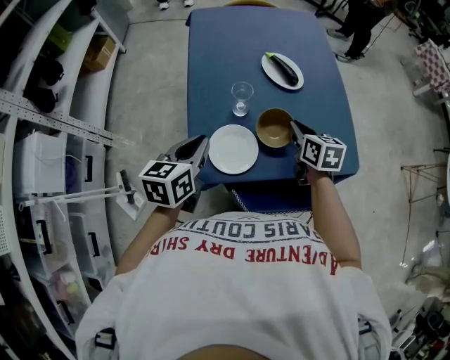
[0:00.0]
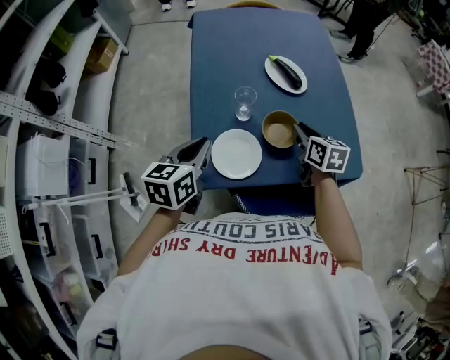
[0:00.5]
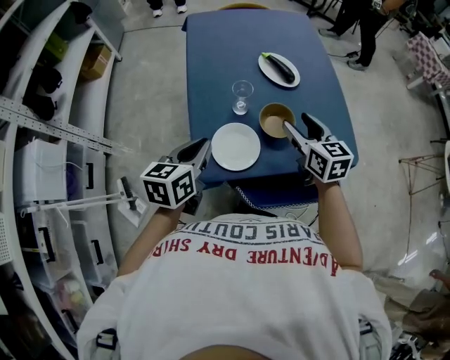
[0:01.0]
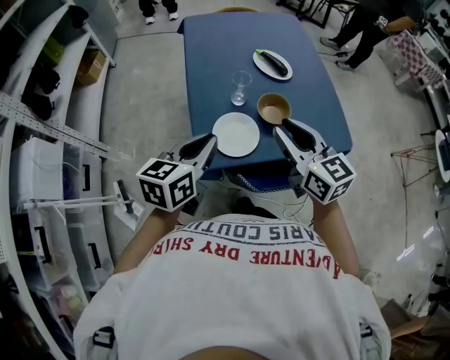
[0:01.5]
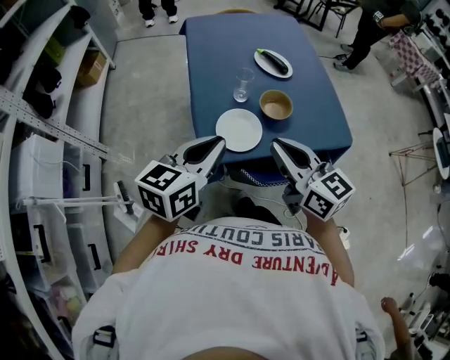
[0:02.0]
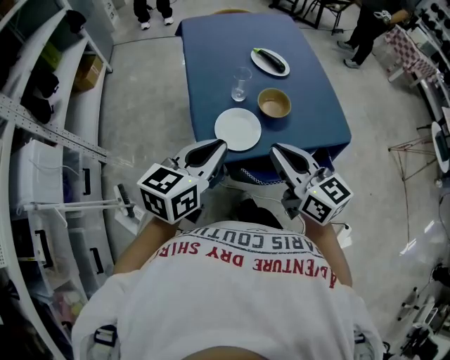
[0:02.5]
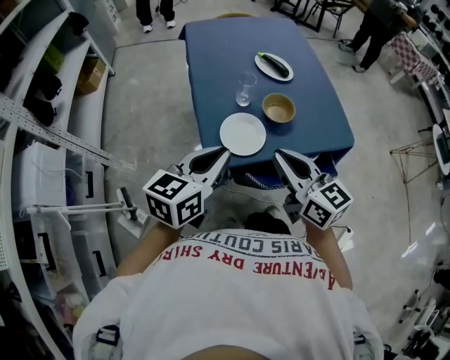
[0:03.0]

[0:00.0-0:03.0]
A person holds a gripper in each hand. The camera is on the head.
0:00.0 to 0:01.5: The left gripper is displaced backward and upward by roughly 10 cm. Meanwhile the right gripper moves upward, backward and to the left, some 20 cm, rotates approximately 30 degrees, and opens and closes again.
0:01.5 to 0:03.0: The left gripper changes place by approximately 5 cm. The right gripper travels backward by roughly 10 cm.

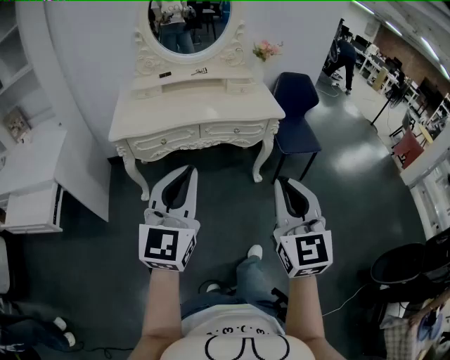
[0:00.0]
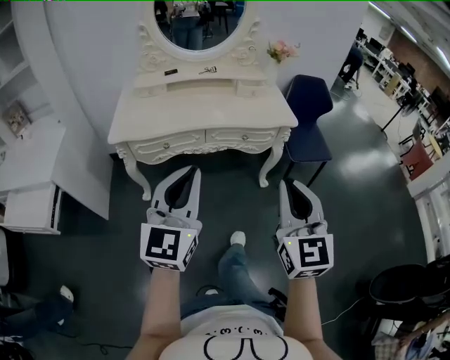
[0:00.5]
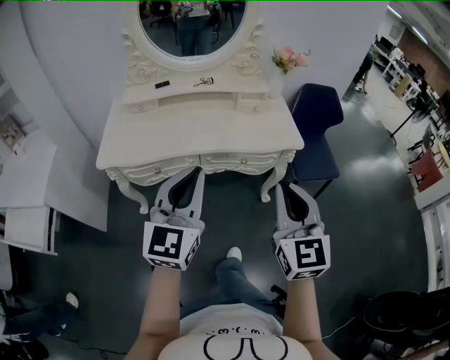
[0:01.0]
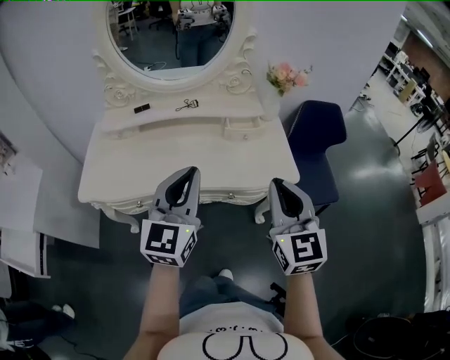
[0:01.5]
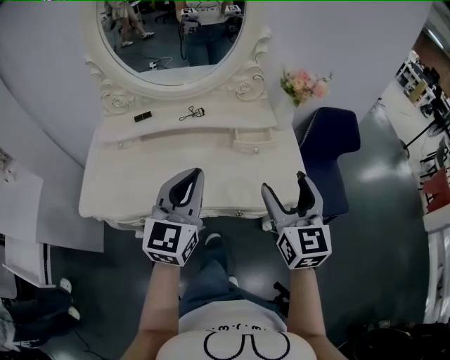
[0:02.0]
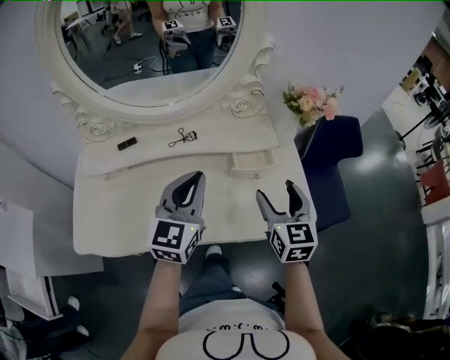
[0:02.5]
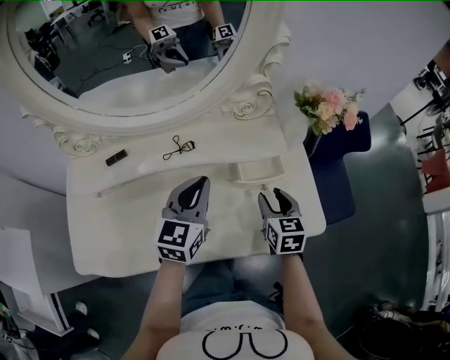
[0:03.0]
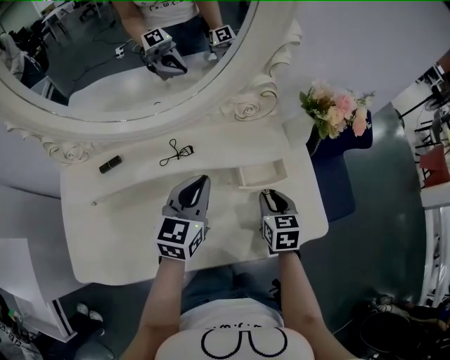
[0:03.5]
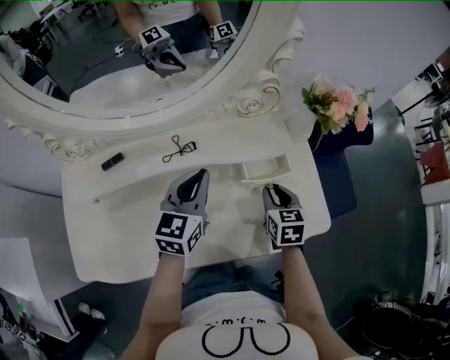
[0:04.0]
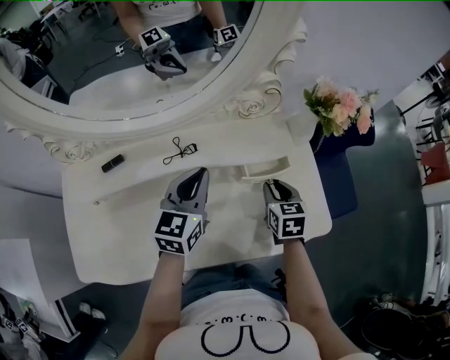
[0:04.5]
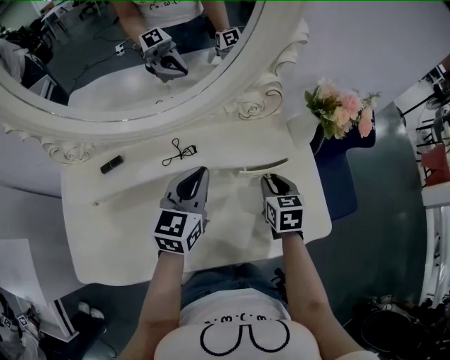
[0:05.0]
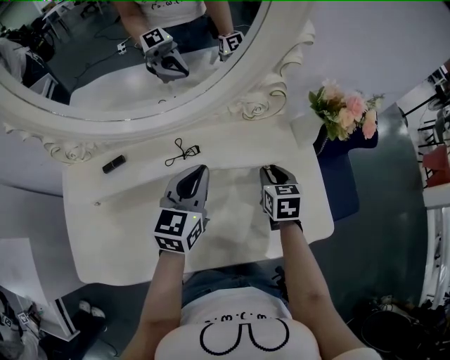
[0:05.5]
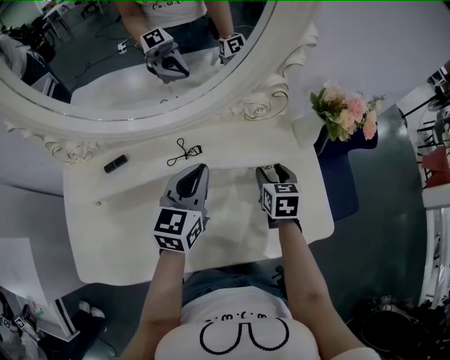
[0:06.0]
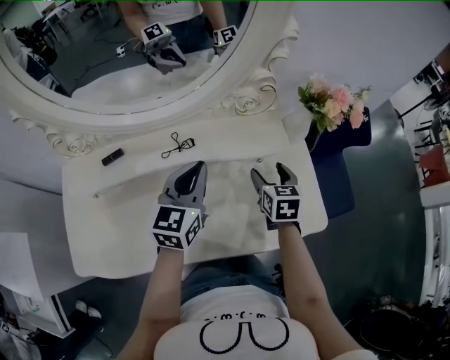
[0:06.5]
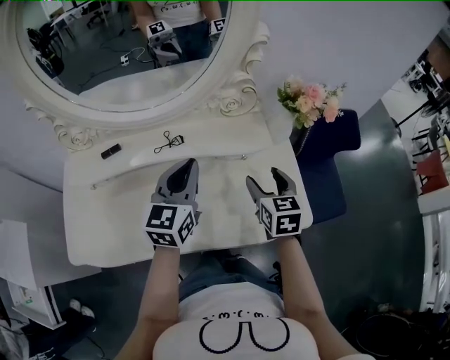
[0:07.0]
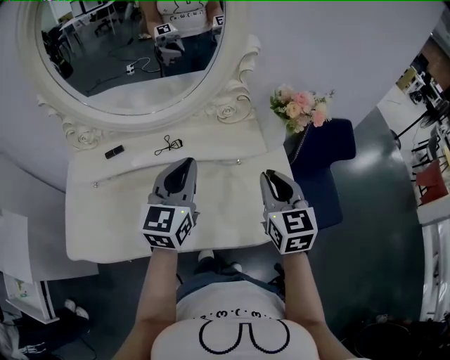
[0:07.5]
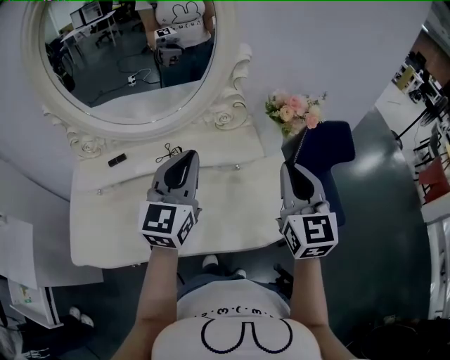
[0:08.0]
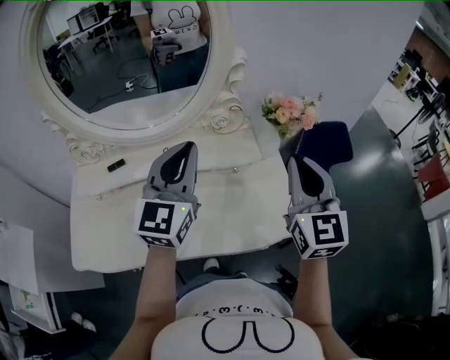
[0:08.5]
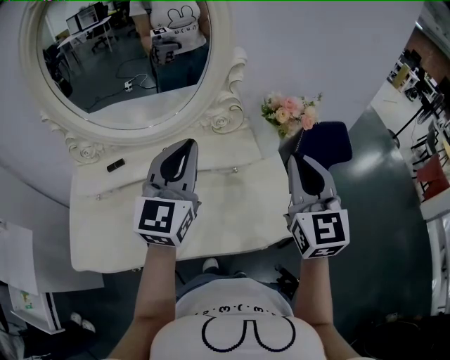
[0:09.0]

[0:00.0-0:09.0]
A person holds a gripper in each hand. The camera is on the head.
0:00.0 to 0:02.0: The two grippers travel together, forward, approximately 60 cm. The right gripper opens.
0:02.0 to 0:04.5: The right gripper moves downward and forward, about 35 cm, angles its fingers downward, by some 40 degrees, and closes. Meanwhile the left gripper travels forward and downward by roughly 30 cm, and changes its angle by roughly 20 degrees.
0:04.5 to 0:07.0: Both grippers travel together upward, roughly 10 cm. The right gripper opens its fingers.
0:07.0 to 0:09.0: The right gripper moves upward, roughly 25 cm, tilts its fingers roughly 30 degrees upward, and closes up, while the left gripper travels upward by about 15 cm, and changes its angle by some 20 degrees.

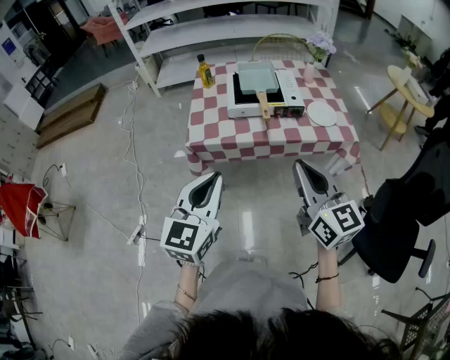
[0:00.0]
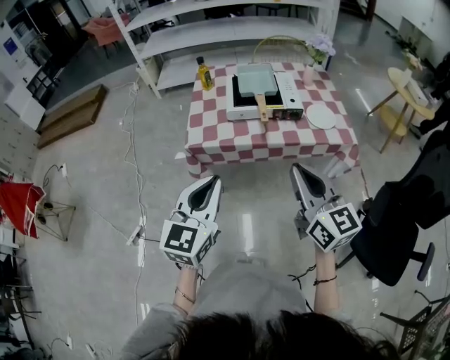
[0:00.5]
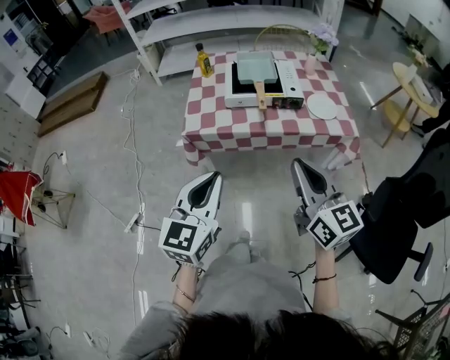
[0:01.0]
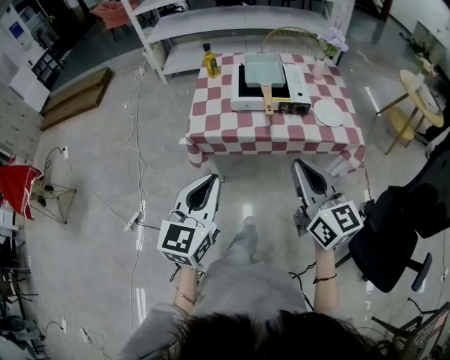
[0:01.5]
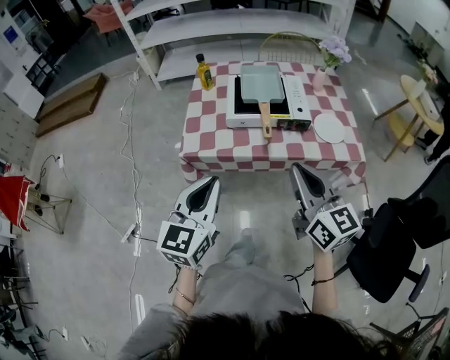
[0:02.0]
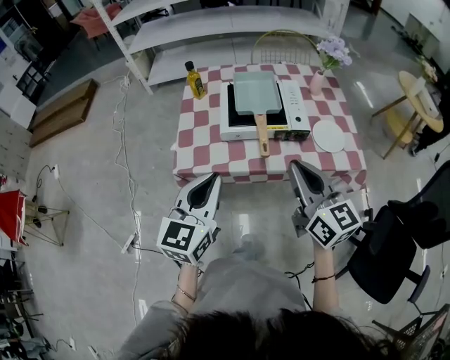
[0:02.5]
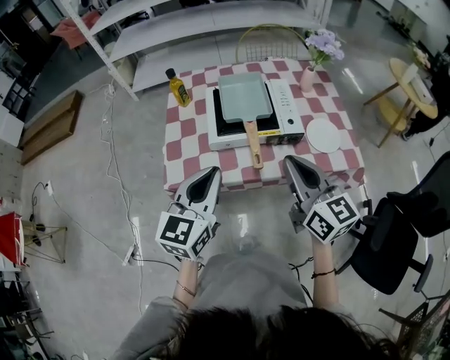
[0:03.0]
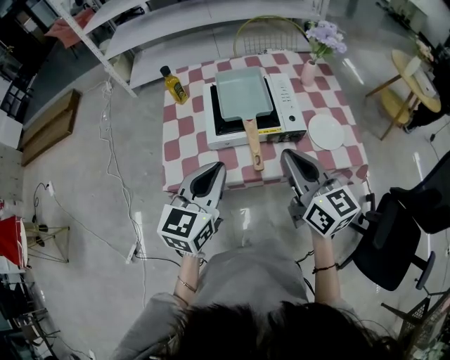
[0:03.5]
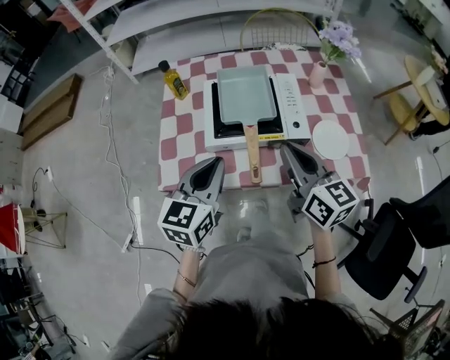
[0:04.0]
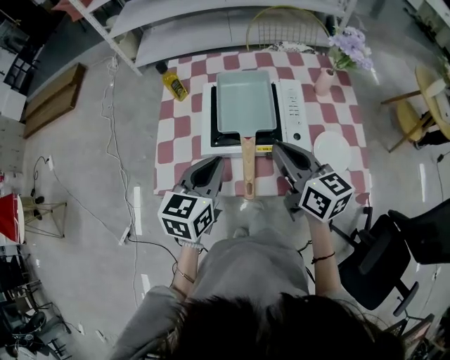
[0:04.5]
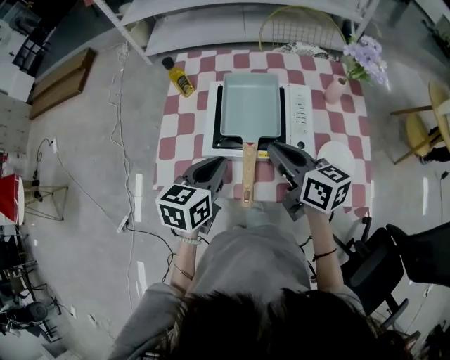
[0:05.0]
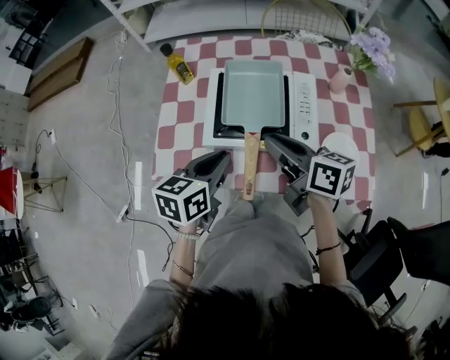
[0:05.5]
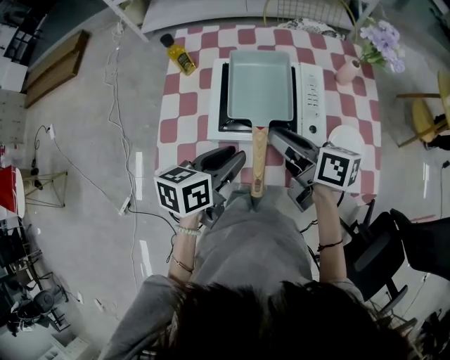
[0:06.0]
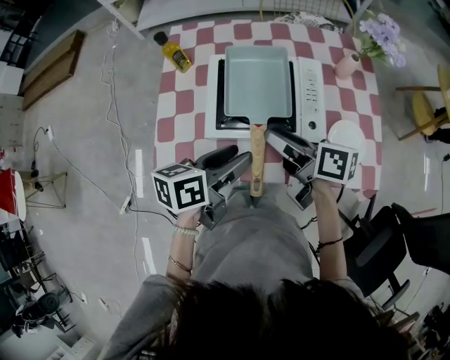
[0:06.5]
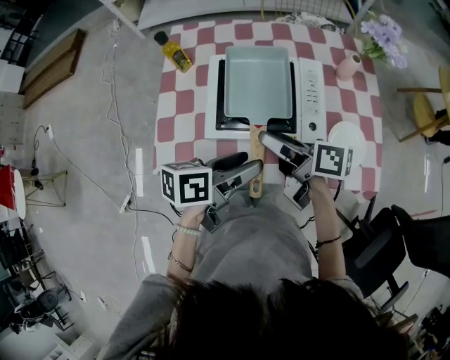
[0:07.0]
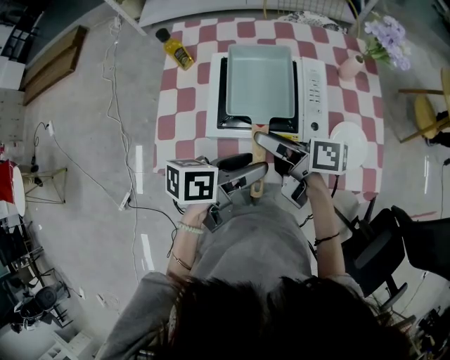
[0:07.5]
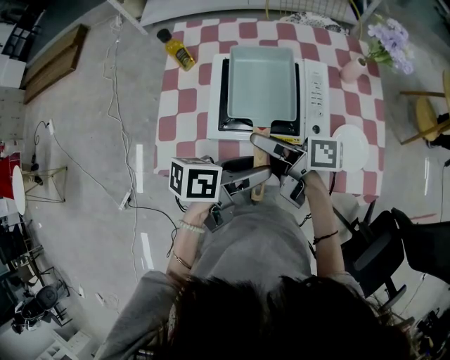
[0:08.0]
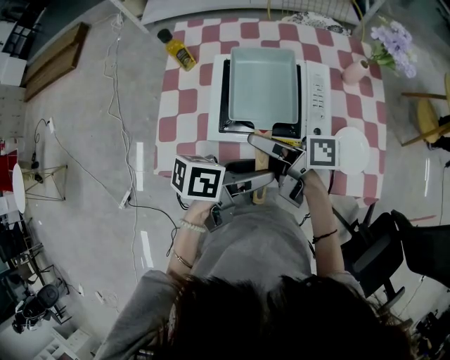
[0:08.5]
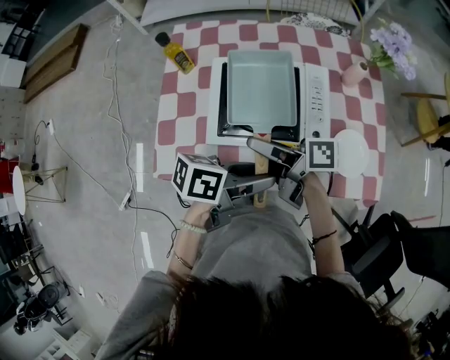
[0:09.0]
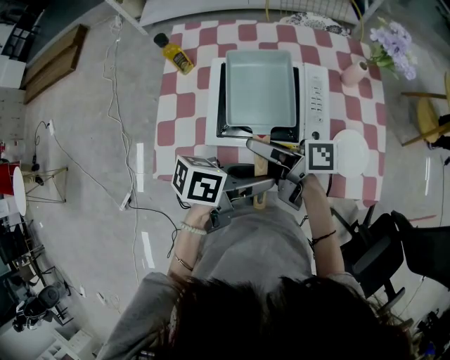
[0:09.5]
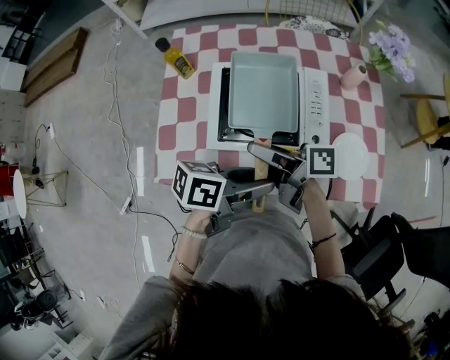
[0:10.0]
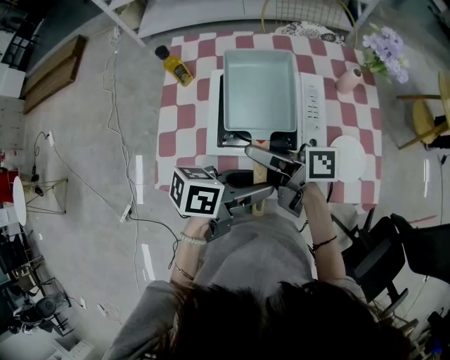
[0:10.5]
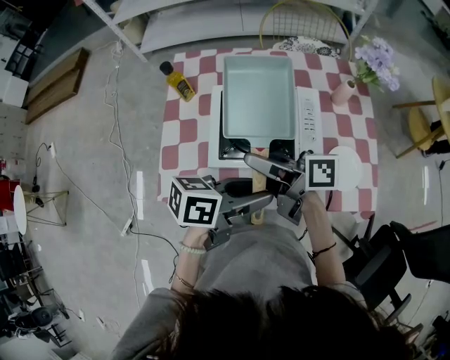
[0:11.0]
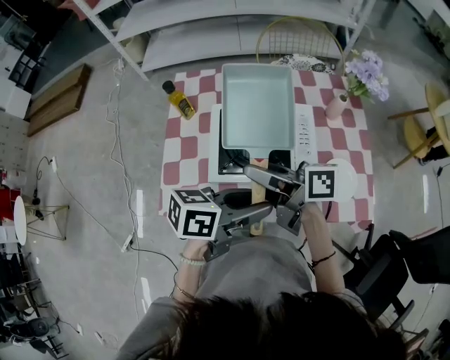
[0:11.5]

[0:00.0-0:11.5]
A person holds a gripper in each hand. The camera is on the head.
0:00.0 to 0:02.0: The two grippers go roughly 10 cm forward.
0:02.0 to 0:04.0: The two grippers go some 20 cm forward.
0:04.0 to 0:06.0: The right gripper is displaced forward and downward by approximately 10 cm, changes its angle by roughly 40 degrees, and opens, while the left gripper goes about 5 cm downward, turns by some 30 degrees, and opens its fingers.
0:06.0 to 0:07.5: The right gripper opens, while the left gripper shifts approximately 5 cm to the right, rotates some 20 degrees, and opens its fingers.
0:07.5 to 0:09.5: The grippers stay close to where they were, moving slightly.
0:09.5 to 0:11.5: Both grippers travel together upward, roughly 10 cm.

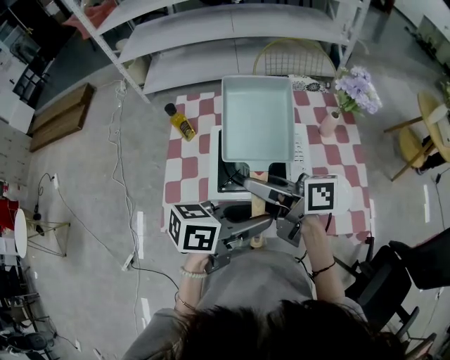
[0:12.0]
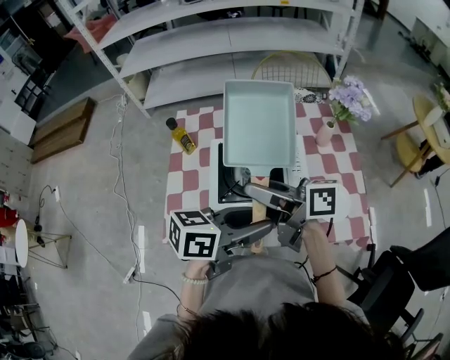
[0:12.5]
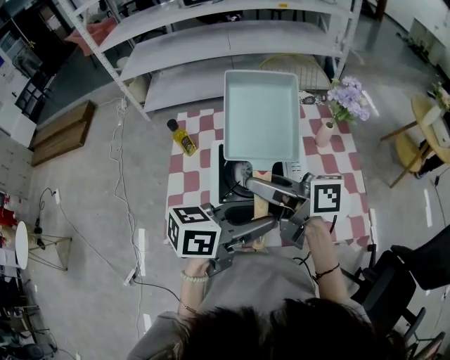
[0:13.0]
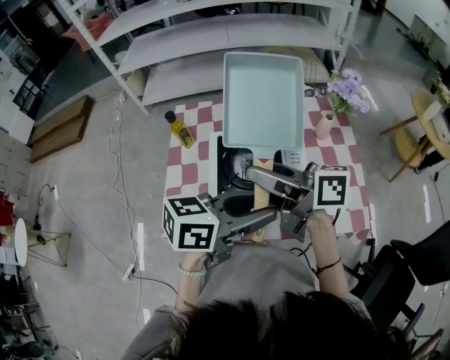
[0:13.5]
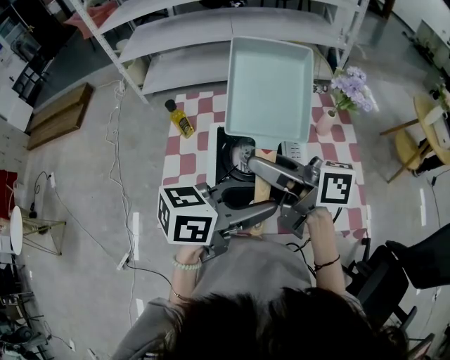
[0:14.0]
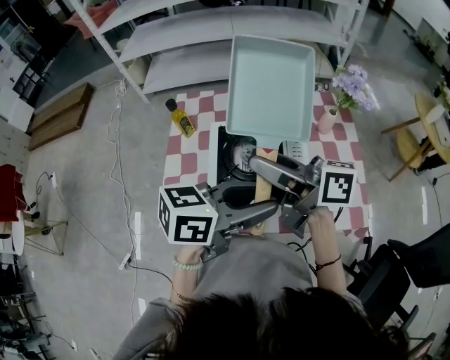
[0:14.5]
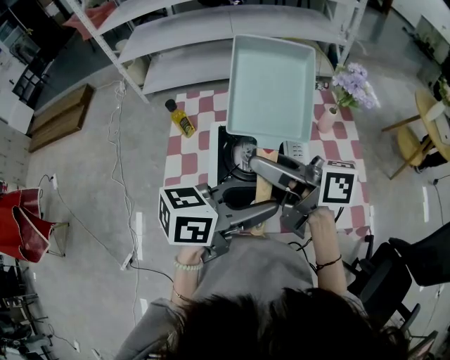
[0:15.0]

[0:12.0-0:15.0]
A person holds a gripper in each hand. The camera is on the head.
0:12.0 to 0:13.5: Both grippers travel together upward, roughly 5 cm.
0:13.5 to 0:15.0: The grippers move only a little.
